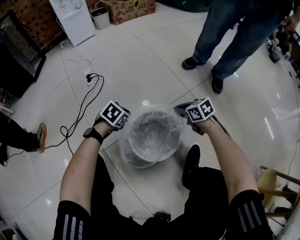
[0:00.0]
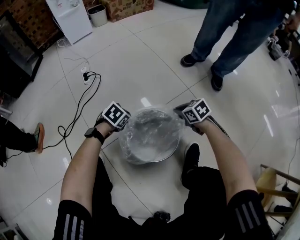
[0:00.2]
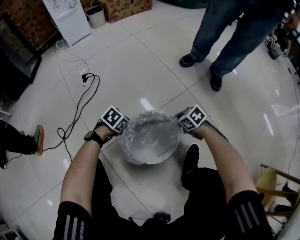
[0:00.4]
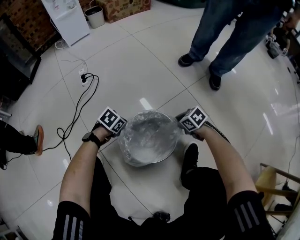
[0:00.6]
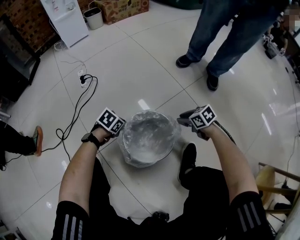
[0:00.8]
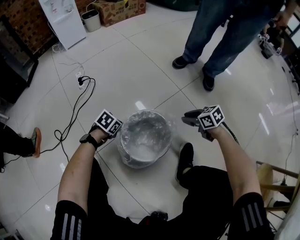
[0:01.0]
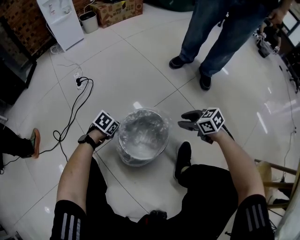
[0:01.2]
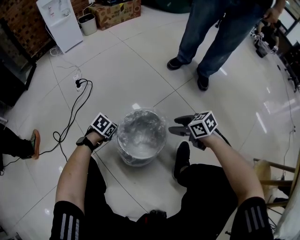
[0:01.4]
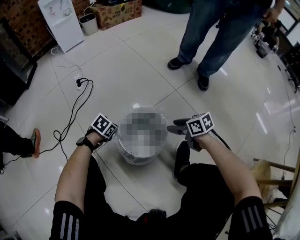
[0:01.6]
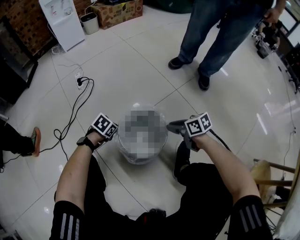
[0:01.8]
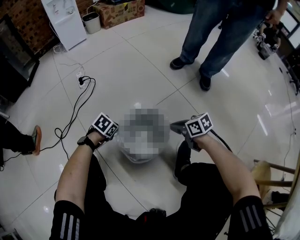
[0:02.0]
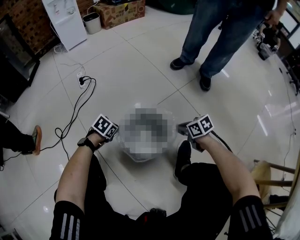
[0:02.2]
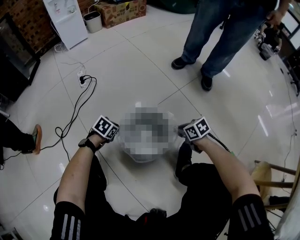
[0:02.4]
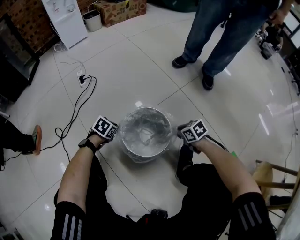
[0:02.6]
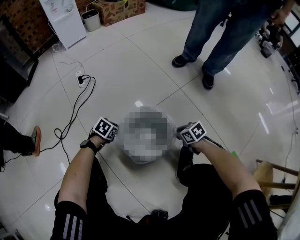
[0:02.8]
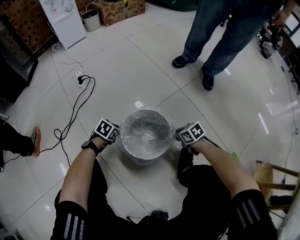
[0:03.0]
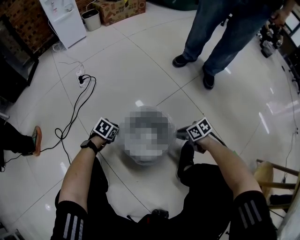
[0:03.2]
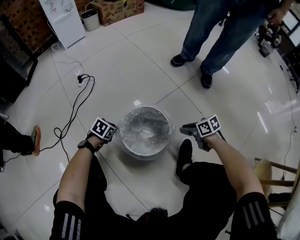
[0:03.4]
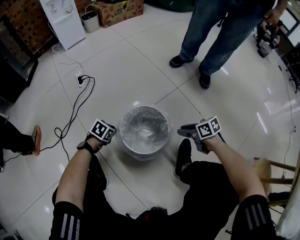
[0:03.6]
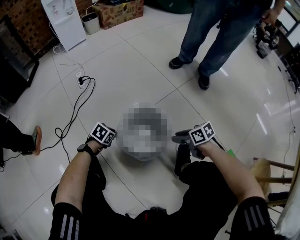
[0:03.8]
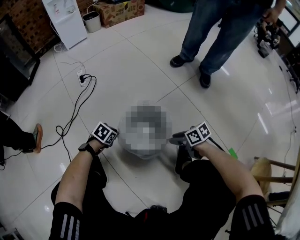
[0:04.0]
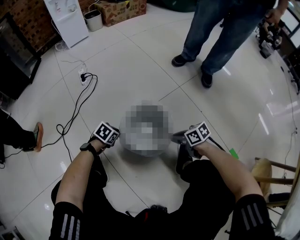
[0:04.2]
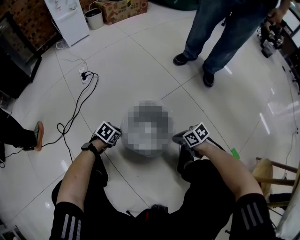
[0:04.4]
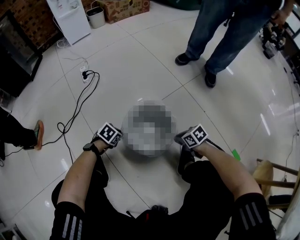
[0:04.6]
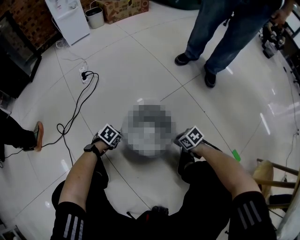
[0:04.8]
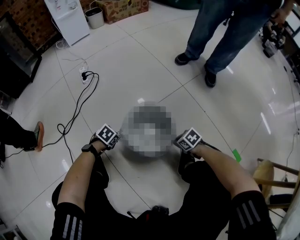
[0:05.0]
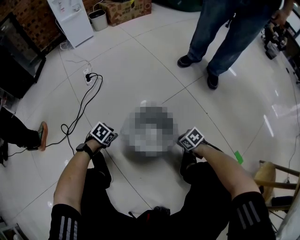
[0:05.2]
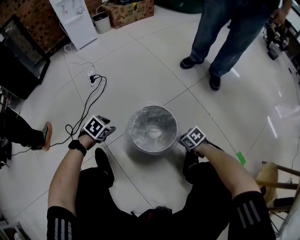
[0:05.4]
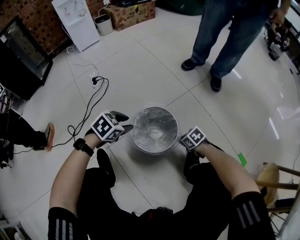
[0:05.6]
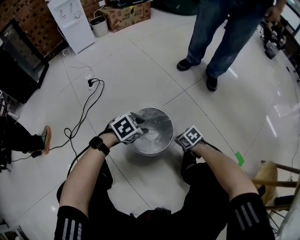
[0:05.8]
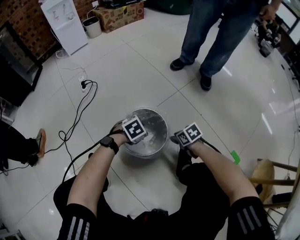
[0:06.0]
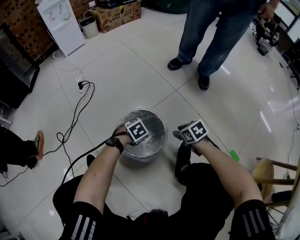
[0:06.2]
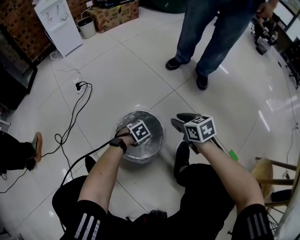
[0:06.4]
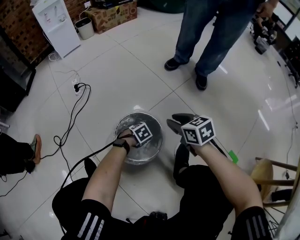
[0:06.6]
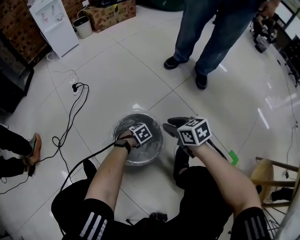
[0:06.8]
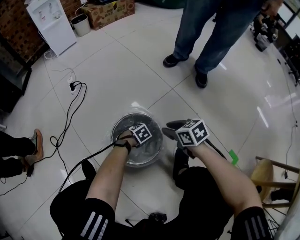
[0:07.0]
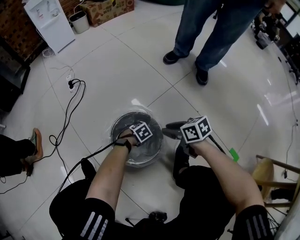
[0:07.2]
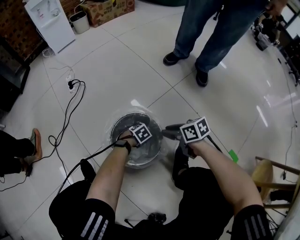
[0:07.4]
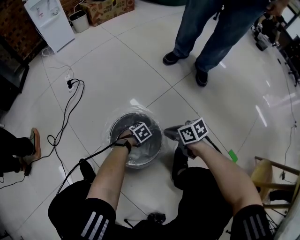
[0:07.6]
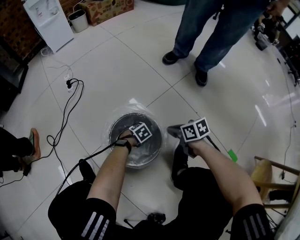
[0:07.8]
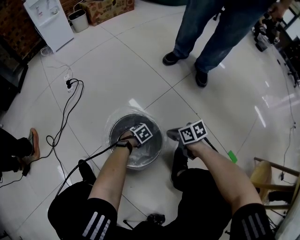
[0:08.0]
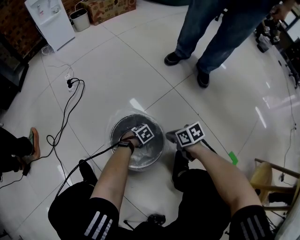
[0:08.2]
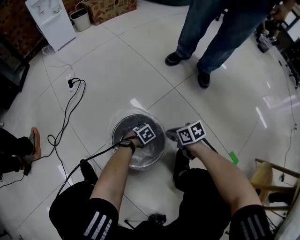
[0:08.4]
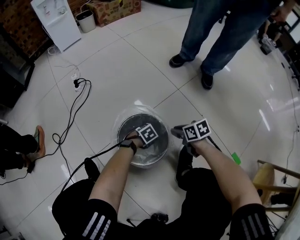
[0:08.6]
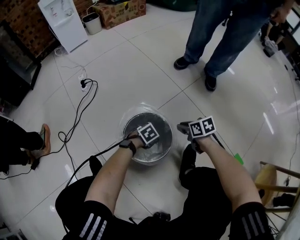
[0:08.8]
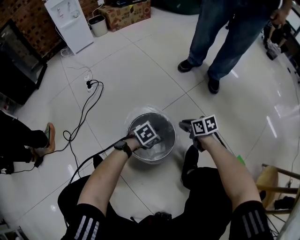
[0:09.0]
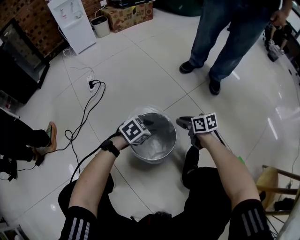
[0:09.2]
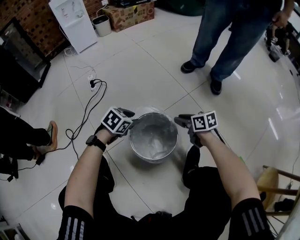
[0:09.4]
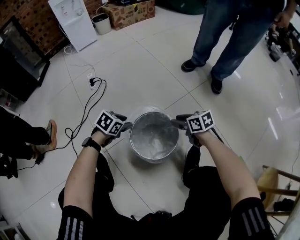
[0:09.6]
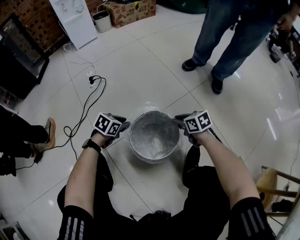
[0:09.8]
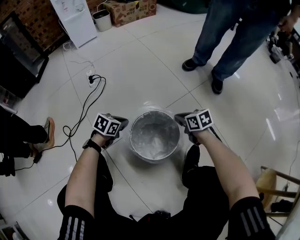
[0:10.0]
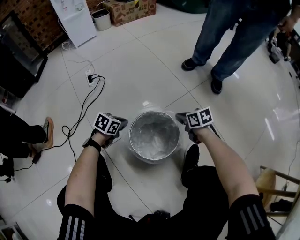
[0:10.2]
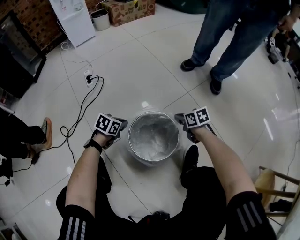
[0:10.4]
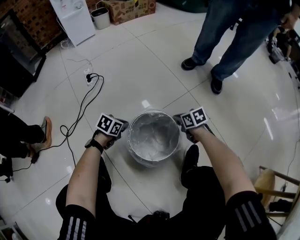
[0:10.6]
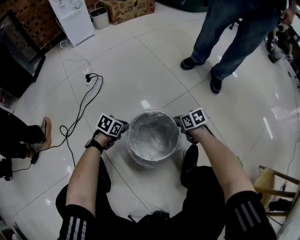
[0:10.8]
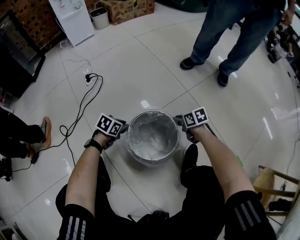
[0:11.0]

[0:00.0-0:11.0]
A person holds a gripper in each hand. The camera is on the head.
0:00.0 to 0:01.6: The right gripper travels downward and back again, roughly 10 cm each way, and opens. Meanwhile the left gripper changes place by roughly 10 cm.
0:01.6 to 0:03.2: The right gripper heads downward, covering roughly 10 cm, and closes its fingers.
0:03.2 to 0:04.8: The left gripper moves about 5 cm. The right gripper reaches some 10 cm upward, then returns, and closes up.
0:04.8 to 0:06.2: The left gripper goes upward and returns, approximately 20 cm each way, turns by roughly 20 degrees, and opens; the right gripper heads upward, covering roughly 10 cm, and opens up.
0:06.2 to 0:07.8: The left gripper shifts some 15 cm downward. Meanwhile the right gripper moves roughly 10 cm upward and comes back, rotates approximately 20 degrees, and closes.
0:07.8 to 0:09.4: The right gripper moves roughly 10 cm, and opens; the left gripper travels upward by some 25 cm, and rotates about 30 degrees.
0:09.4 to 0:11.0: Both grippers travel together downward, about 10 cm. The left gripper closes, then opens again.

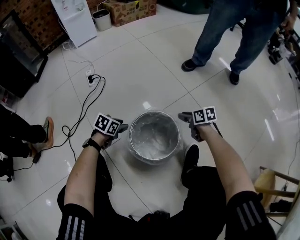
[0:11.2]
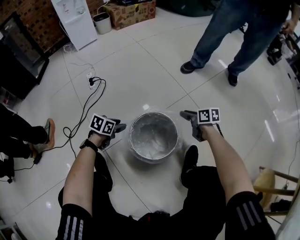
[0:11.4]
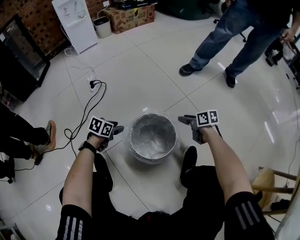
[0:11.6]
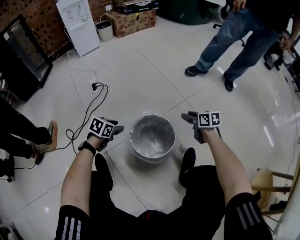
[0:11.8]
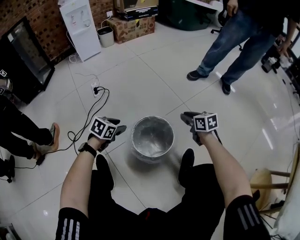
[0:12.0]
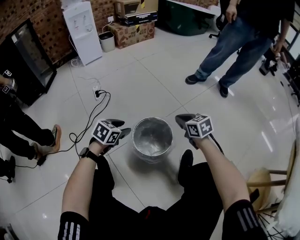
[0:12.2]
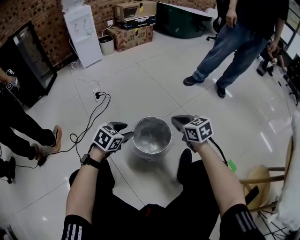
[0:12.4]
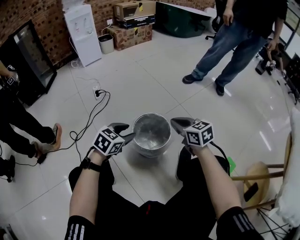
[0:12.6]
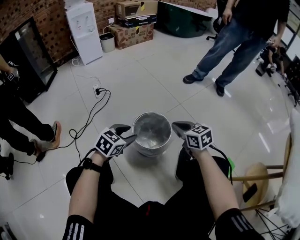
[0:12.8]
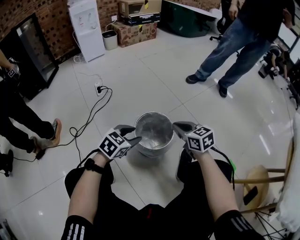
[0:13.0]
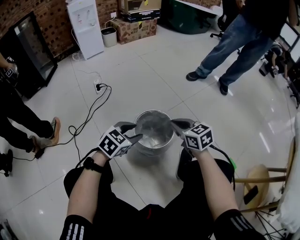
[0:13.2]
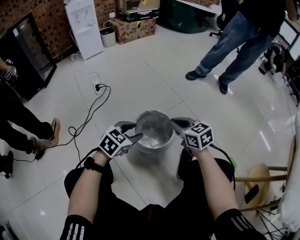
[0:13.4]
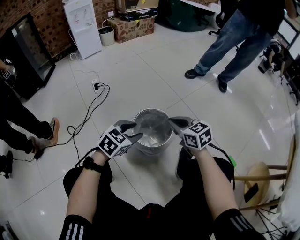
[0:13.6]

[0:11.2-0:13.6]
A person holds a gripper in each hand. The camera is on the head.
0:11.2 to 0:12.4: The two grippers go some 25 cm upward and backward. The right gripper turns by about 30 degrees, and closes. The left gripper rotates roughly 30 degrees.
0:12.4 to 0:13.6: The left gripper shifts by about 5 cm.

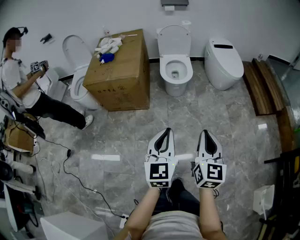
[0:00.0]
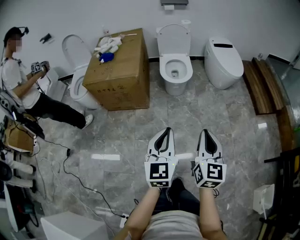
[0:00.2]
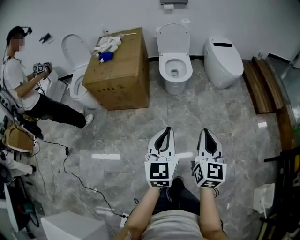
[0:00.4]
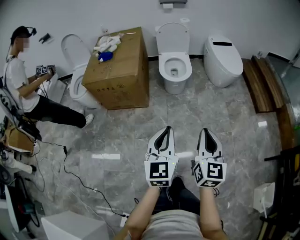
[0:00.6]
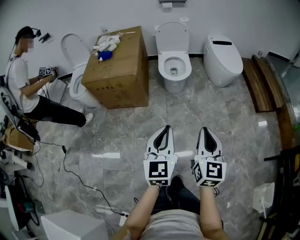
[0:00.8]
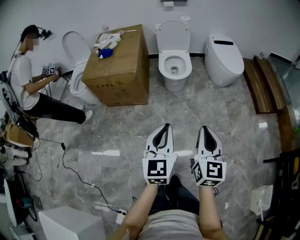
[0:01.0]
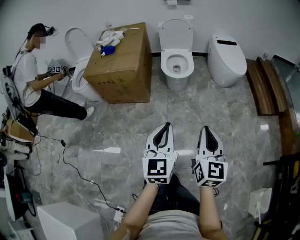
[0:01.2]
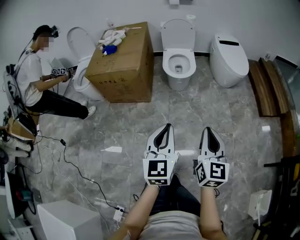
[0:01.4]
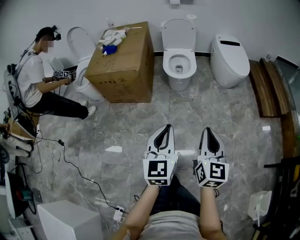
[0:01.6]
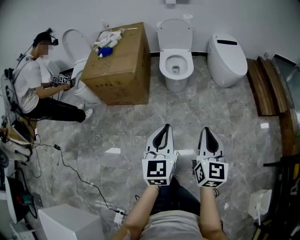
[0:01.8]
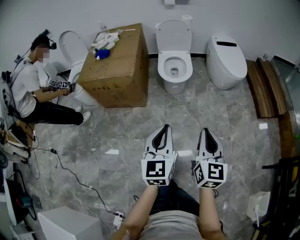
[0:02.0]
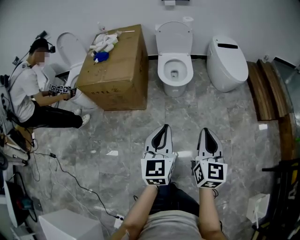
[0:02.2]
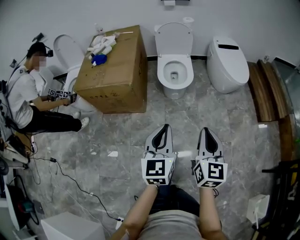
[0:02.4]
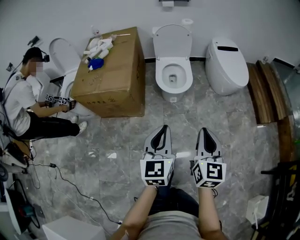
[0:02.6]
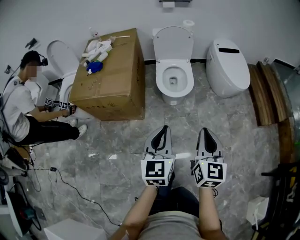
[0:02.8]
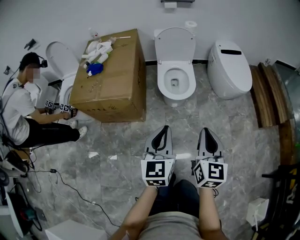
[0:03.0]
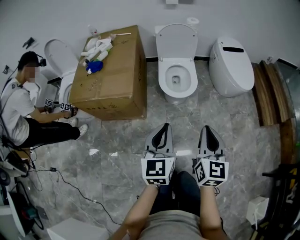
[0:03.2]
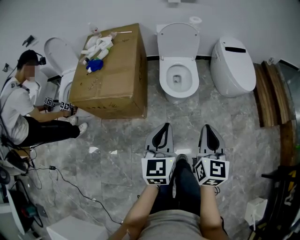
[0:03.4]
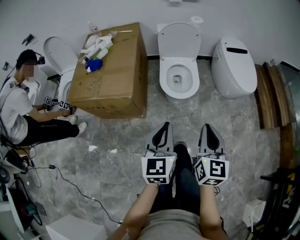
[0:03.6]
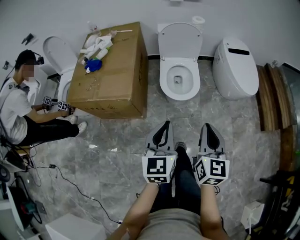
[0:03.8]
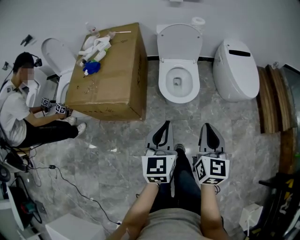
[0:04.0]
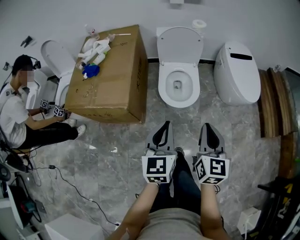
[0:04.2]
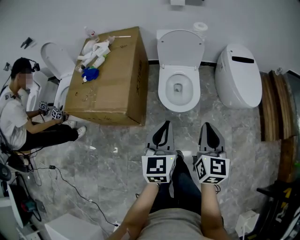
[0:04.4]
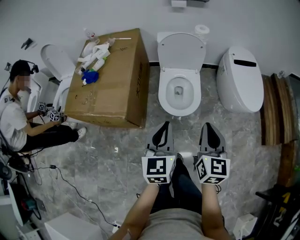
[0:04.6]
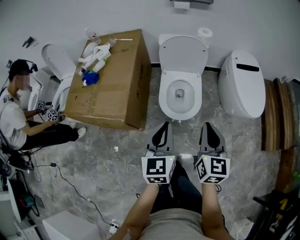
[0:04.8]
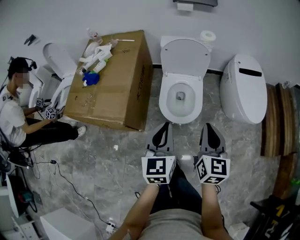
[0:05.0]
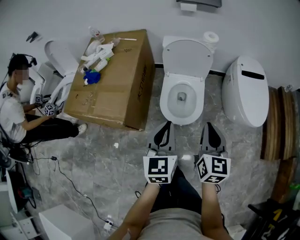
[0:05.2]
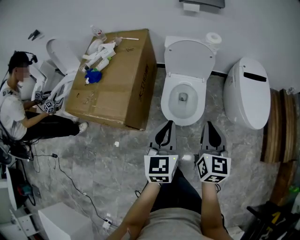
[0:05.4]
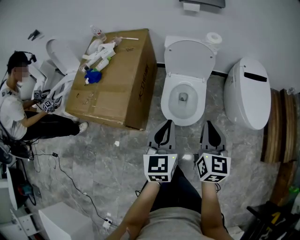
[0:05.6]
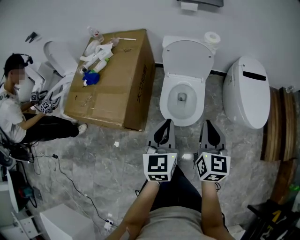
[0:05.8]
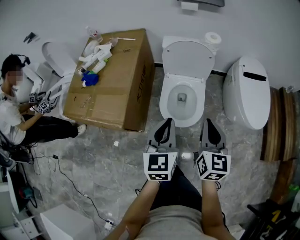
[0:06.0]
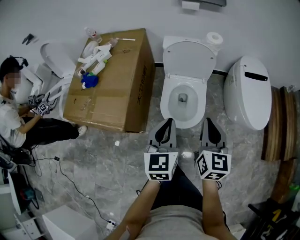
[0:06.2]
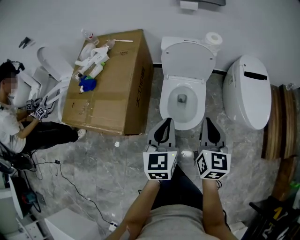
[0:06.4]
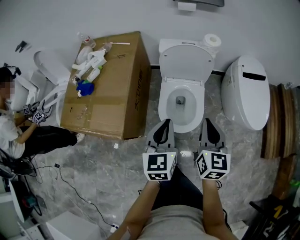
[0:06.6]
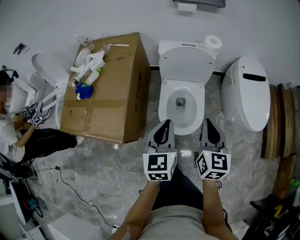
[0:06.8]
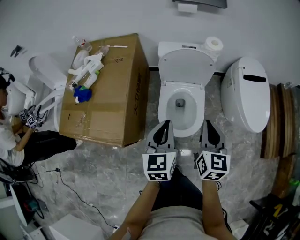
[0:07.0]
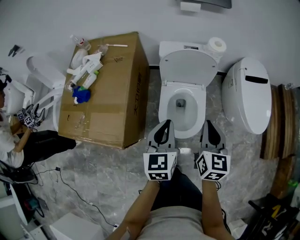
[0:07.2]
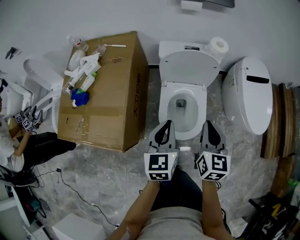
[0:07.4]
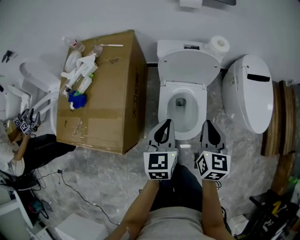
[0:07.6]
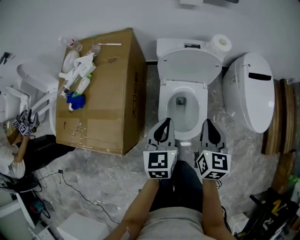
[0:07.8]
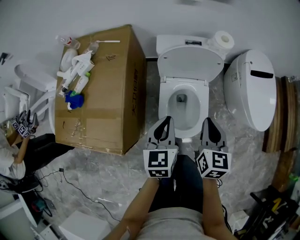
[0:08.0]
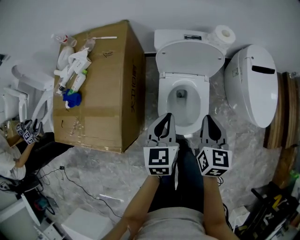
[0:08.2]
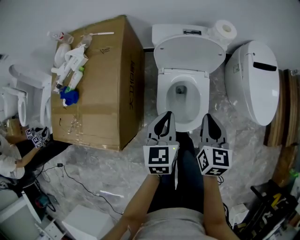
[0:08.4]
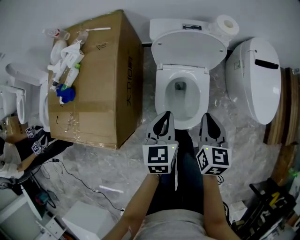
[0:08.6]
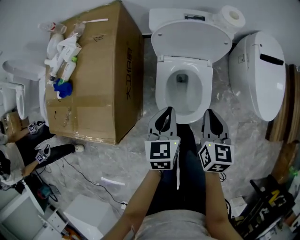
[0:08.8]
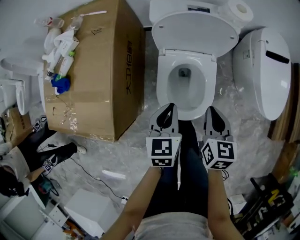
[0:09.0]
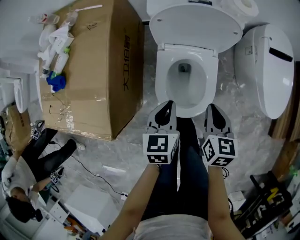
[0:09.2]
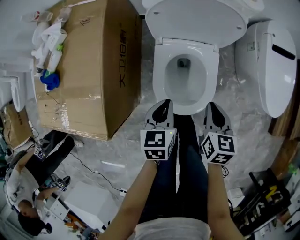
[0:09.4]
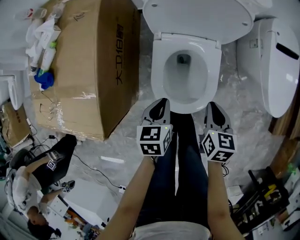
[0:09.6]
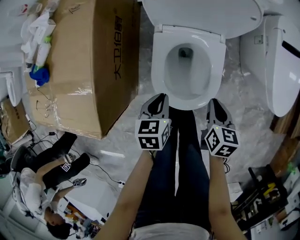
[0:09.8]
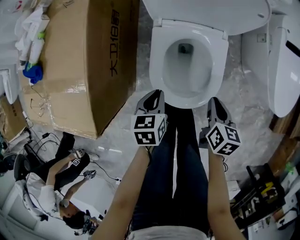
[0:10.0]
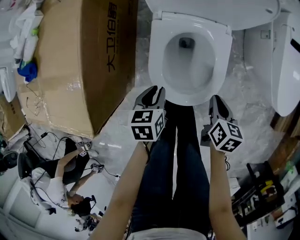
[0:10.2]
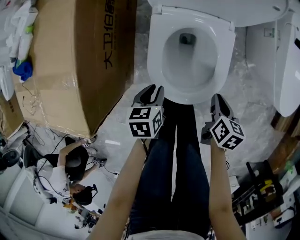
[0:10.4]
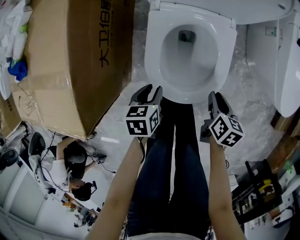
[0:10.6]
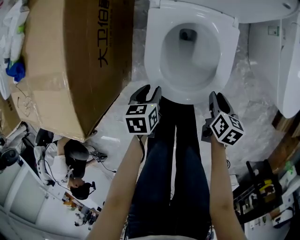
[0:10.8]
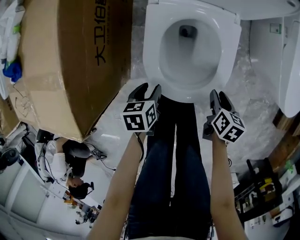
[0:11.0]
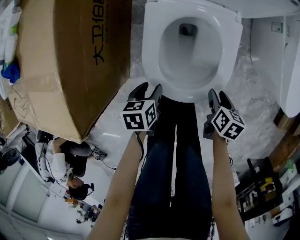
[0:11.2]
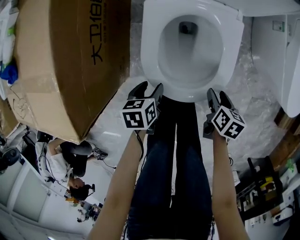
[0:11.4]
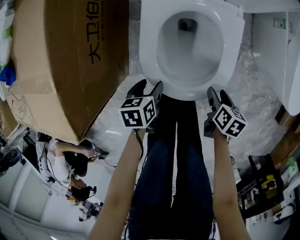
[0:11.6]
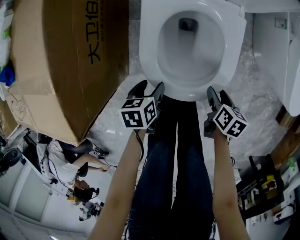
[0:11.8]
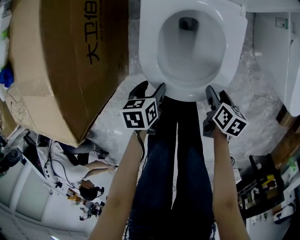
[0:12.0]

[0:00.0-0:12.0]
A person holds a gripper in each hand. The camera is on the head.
0:00.0 to 0:01.6: The right gripper ends up about 5 cm from where it was.
0:01.6 to 0:03.0: The two grippers go about 25 cm forward.
0:03.0 to 0:04.4: Both grippers travel together forward, some 20 cm.
0:04.4 to 0:06.0: The two grippers go approximately 15 cm forward.
0:06.0 to 0:07.6: The grippers both shift forward and downward by some 15 cm.
0:07.6 to 0:09.0: The two grippers go about 15 cm downward.
0:09.0 to 0:10.4: Both grippers move downward, some 25 cm. The right gripper changes its angle by some 30 degrees, while the left gripper swivels approximately 30 degrees.
0:10.4 to 0:12.0: The grippers both shift downward by approximately 10 cm. The left gripper opens; the right gripper opens.
